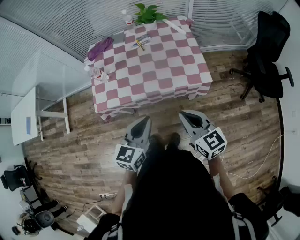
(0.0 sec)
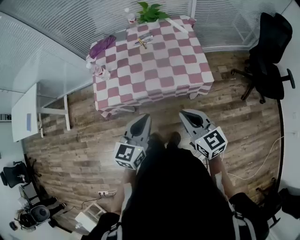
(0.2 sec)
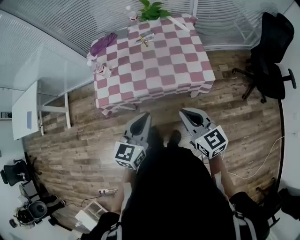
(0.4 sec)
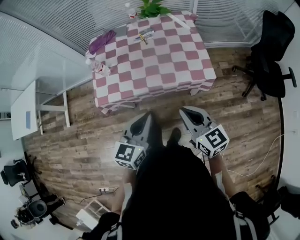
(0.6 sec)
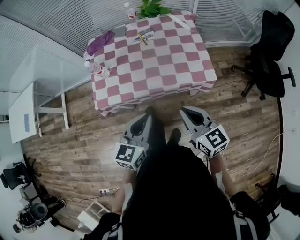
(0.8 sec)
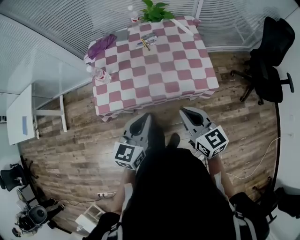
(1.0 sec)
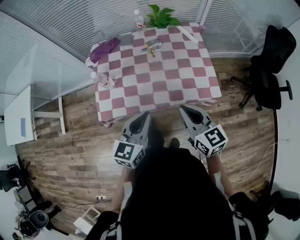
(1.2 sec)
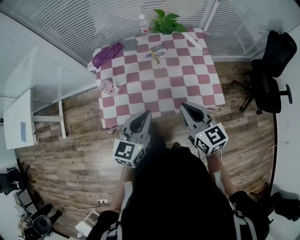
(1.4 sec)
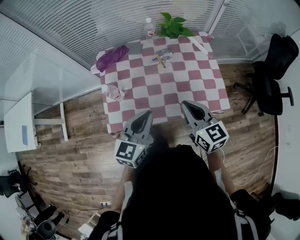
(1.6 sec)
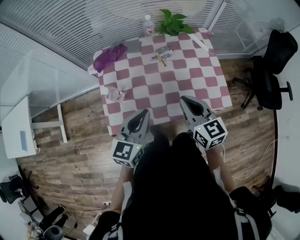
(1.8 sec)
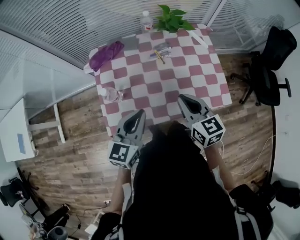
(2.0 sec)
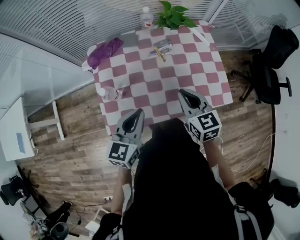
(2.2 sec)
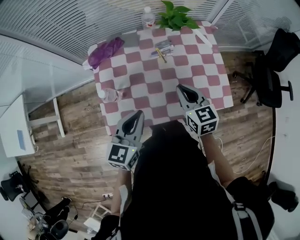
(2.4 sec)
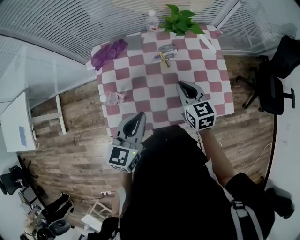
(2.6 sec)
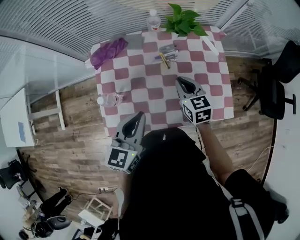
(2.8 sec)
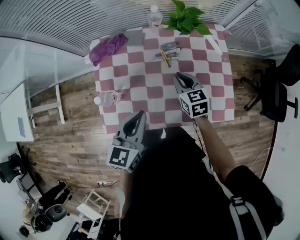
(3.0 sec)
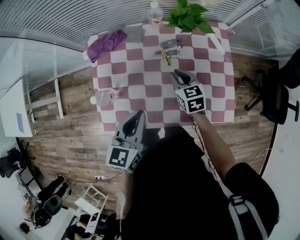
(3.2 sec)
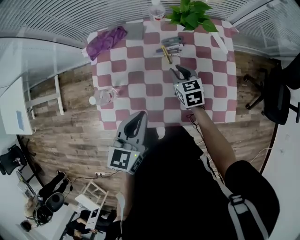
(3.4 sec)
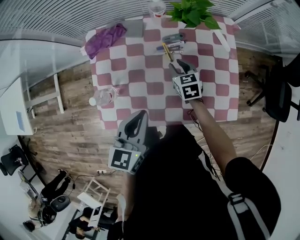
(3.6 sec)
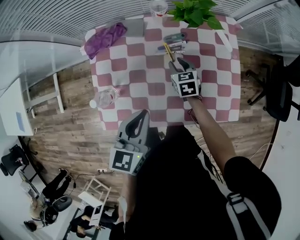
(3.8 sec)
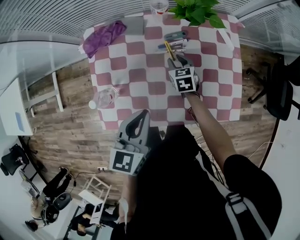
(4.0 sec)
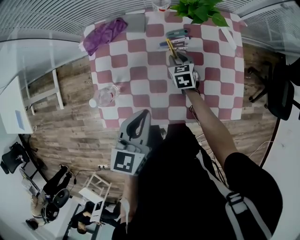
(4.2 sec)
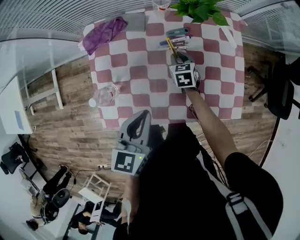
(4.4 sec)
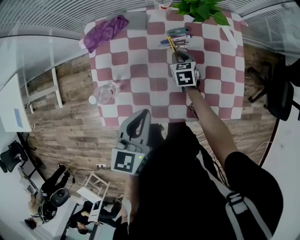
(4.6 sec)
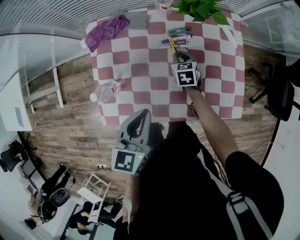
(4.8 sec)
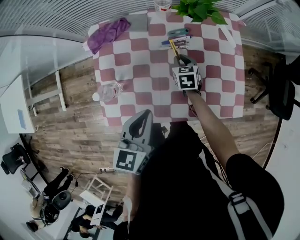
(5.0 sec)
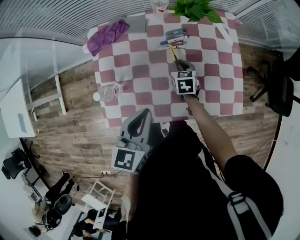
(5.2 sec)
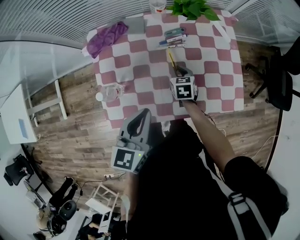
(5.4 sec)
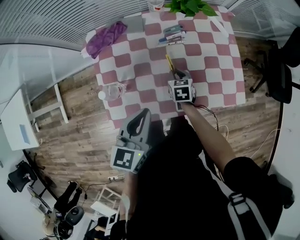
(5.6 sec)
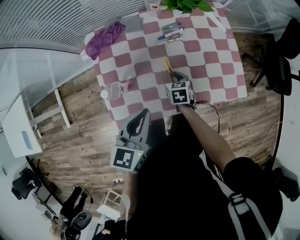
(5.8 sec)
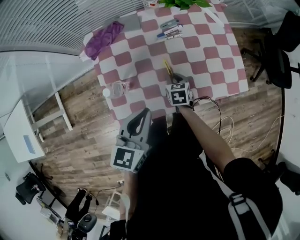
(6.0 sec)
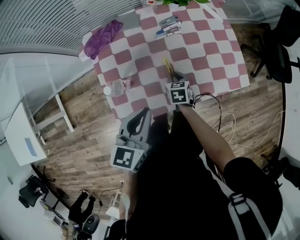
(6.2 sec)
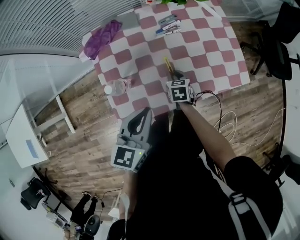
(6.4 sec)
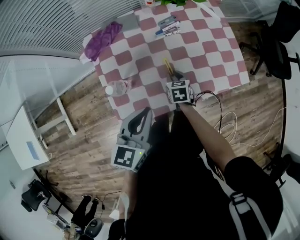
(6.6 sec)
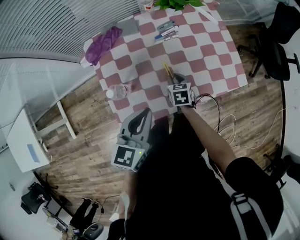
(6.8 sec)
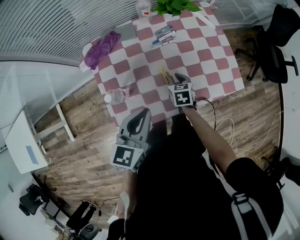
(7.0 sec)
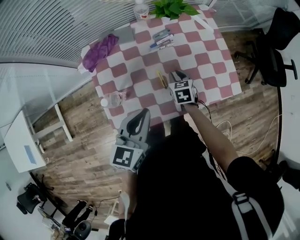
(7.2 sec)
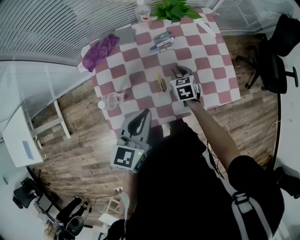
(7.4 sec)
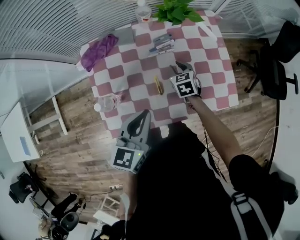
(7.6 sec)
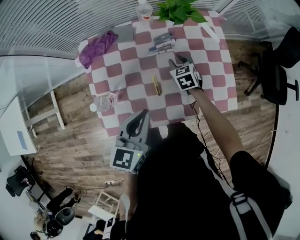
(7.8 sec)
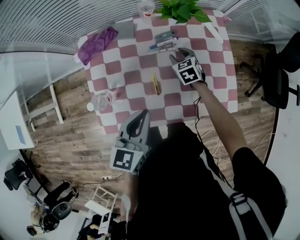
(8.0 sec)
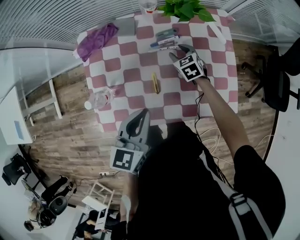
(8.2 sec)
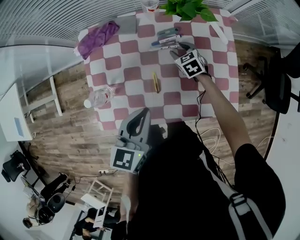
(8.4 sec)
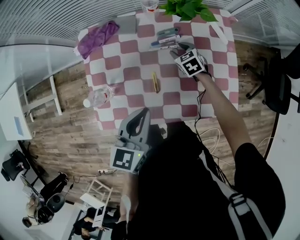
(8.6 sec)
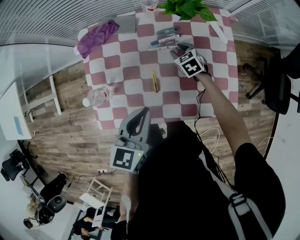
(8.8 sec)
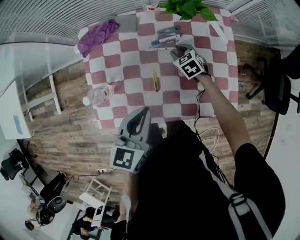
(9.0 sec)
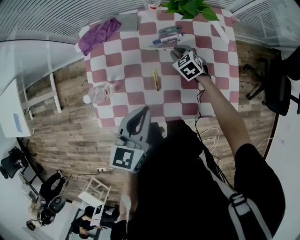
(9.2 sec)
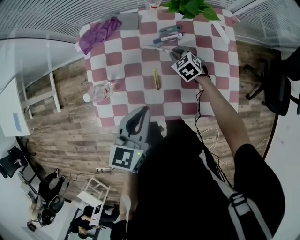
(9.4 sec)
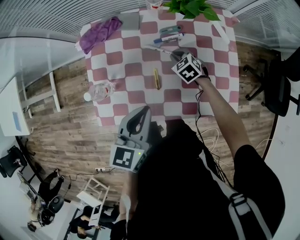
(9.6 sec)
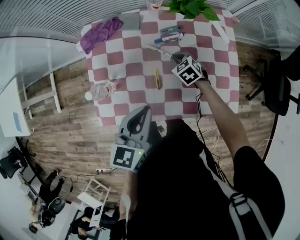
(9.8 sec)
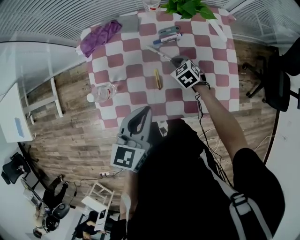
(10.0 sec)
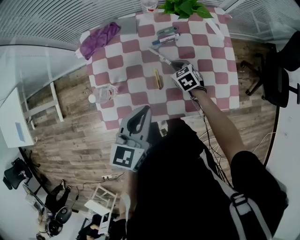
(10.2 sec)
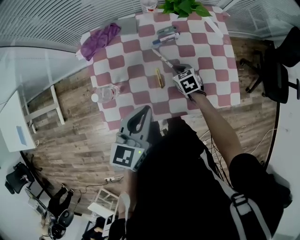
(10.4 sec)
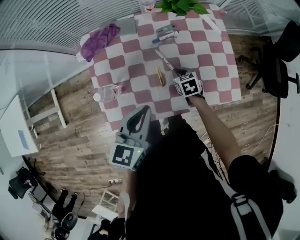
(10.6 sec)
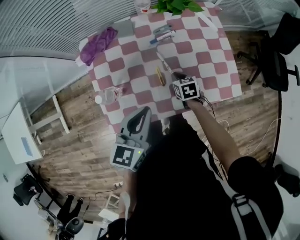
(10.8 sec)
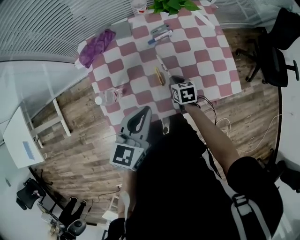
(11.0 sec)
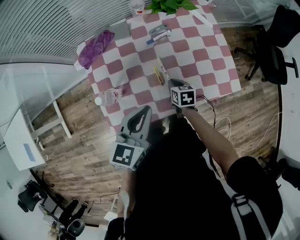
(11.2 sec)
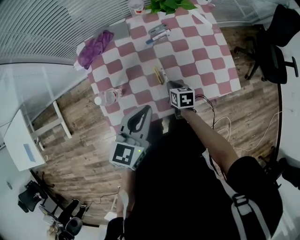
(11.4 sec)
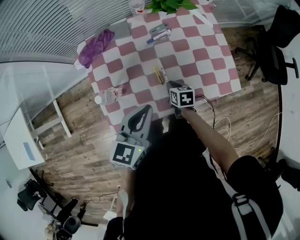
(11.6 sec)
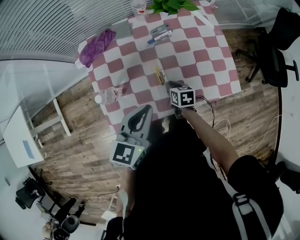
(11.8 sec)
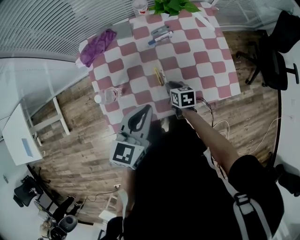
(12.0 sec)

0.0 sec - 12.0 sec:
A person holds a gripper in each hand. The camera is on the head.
0.0 sec - 1.6 sec: The grippers both shift forward and to the left by about 25 cm.
1.6 sec - 3.0 sec: The left gripper is displaced forward by roughly 10 cm; the right gripper heads forward and downward, covering roughly 25 cm.
3.0 sec - 4.4 sec: The right gripper moves downward and forward, approximately 15 cm.
4.4 sec - 6.0 sec: The left gripper heads backward and to the left, covering approximately 10 cm. The right gripper is displaced backward by roughly 15 cm.
6.0 sec - 7.6 sec: The left gripper goes about 5 cm forward; the right gripper heads forward, covering approximately 15 cm.
7.6 sec - 9.0 sec: The right gripper moves forward, roughly 5 cm, turns by some 20 degrees, and opens, then closes again.
9.0 sec - 10.4 sec: The right gripper shifts some 10 cm backward, and closes its fingers.
10.4 sec - 12.0 sec: The right gripper heads backward, covering about 10 cm, and turns by roughly 30 degrees.

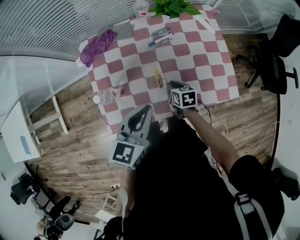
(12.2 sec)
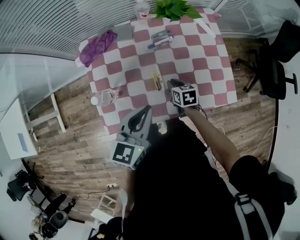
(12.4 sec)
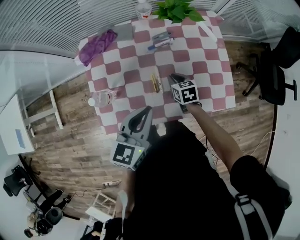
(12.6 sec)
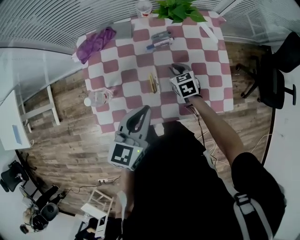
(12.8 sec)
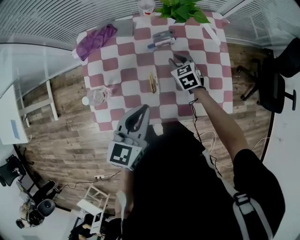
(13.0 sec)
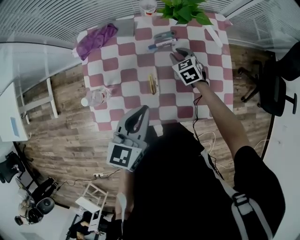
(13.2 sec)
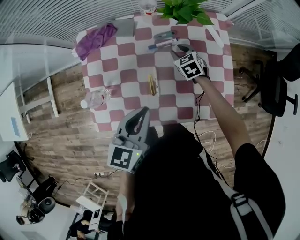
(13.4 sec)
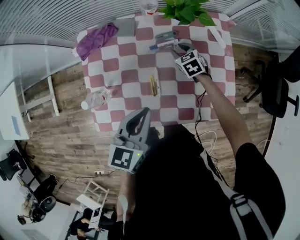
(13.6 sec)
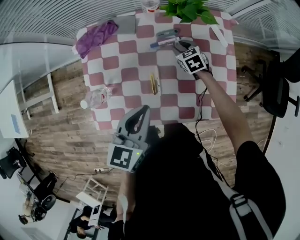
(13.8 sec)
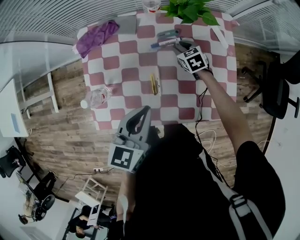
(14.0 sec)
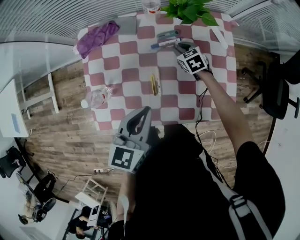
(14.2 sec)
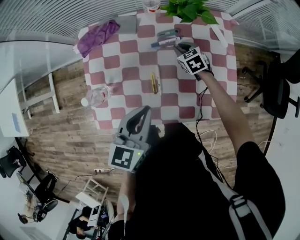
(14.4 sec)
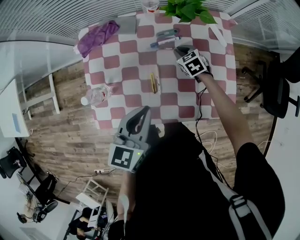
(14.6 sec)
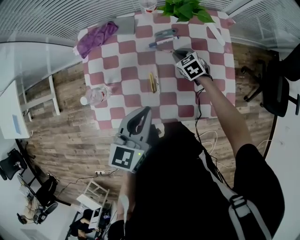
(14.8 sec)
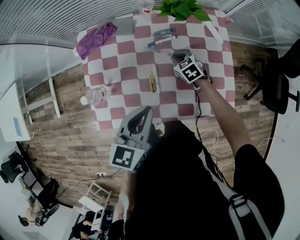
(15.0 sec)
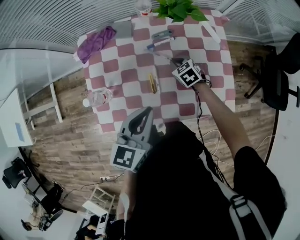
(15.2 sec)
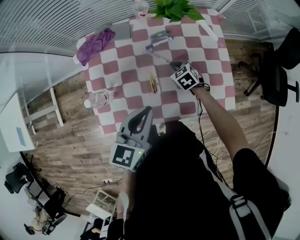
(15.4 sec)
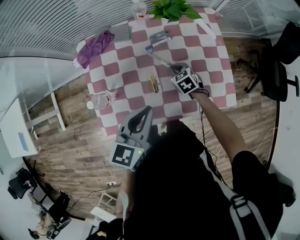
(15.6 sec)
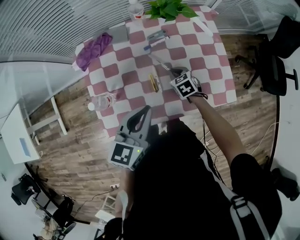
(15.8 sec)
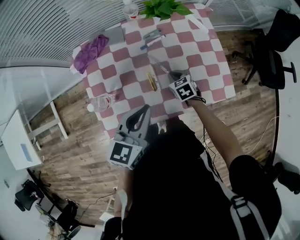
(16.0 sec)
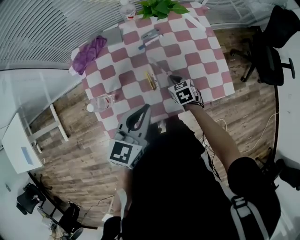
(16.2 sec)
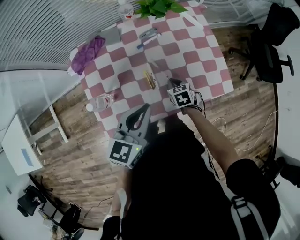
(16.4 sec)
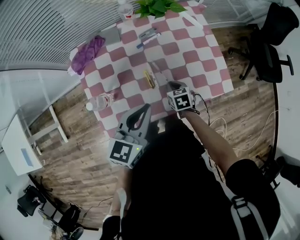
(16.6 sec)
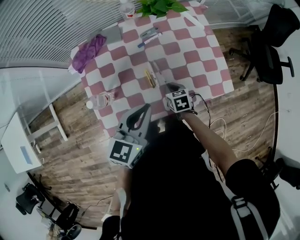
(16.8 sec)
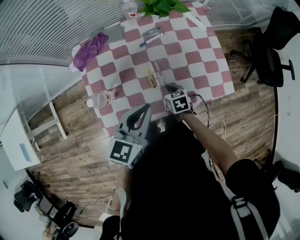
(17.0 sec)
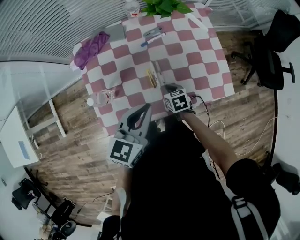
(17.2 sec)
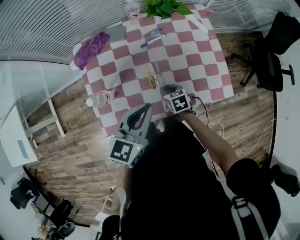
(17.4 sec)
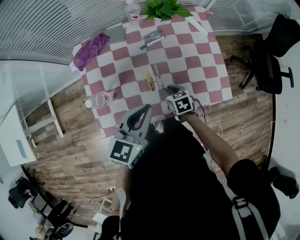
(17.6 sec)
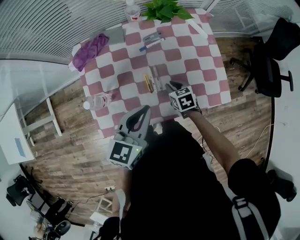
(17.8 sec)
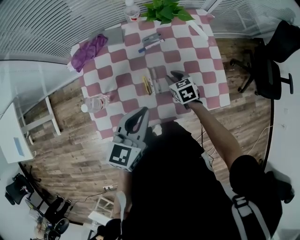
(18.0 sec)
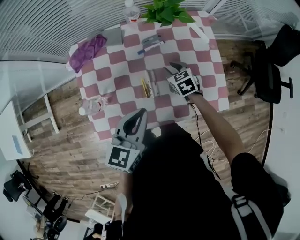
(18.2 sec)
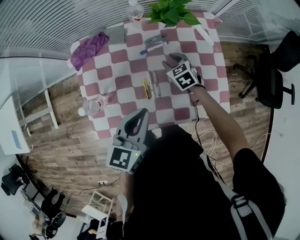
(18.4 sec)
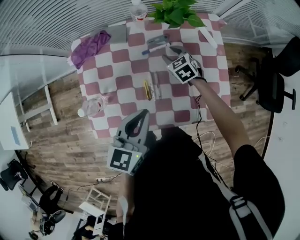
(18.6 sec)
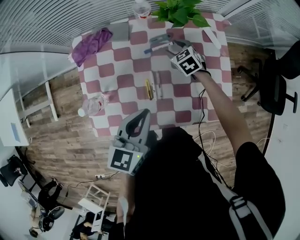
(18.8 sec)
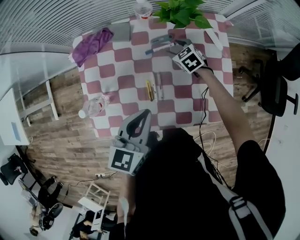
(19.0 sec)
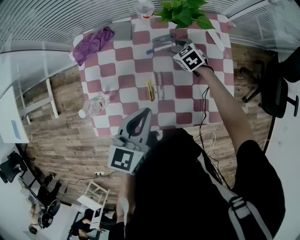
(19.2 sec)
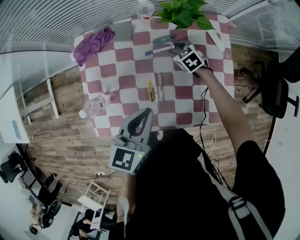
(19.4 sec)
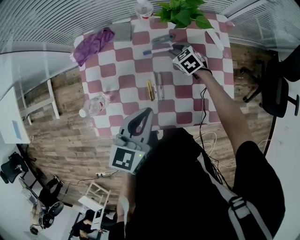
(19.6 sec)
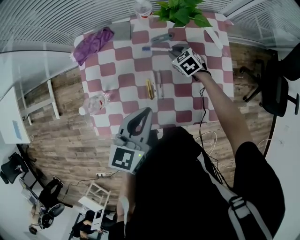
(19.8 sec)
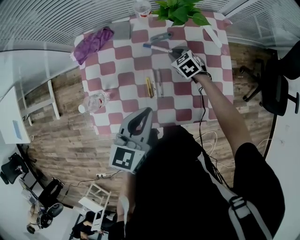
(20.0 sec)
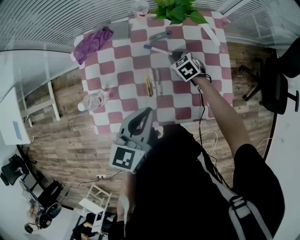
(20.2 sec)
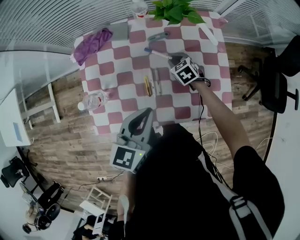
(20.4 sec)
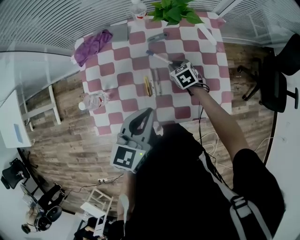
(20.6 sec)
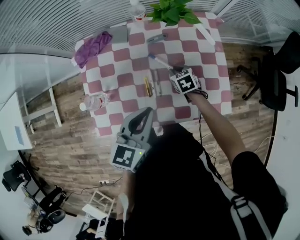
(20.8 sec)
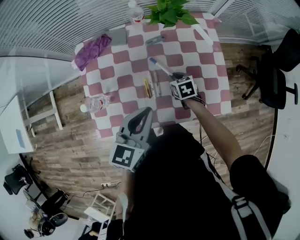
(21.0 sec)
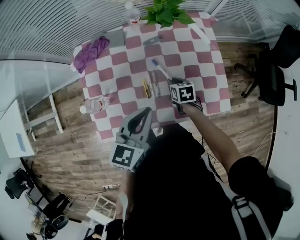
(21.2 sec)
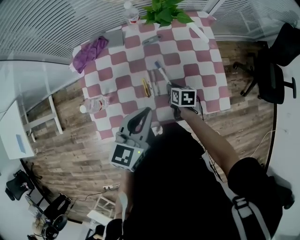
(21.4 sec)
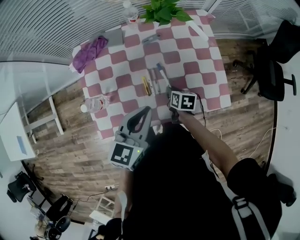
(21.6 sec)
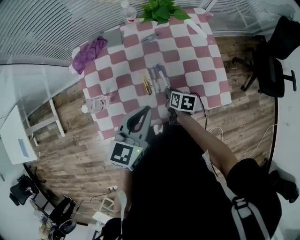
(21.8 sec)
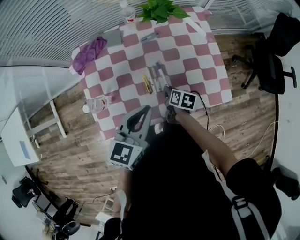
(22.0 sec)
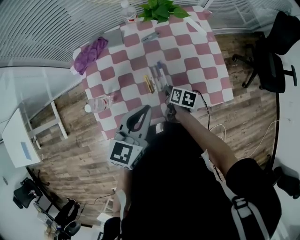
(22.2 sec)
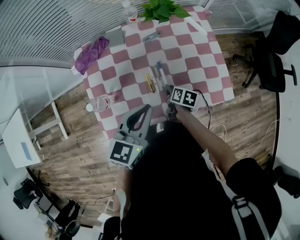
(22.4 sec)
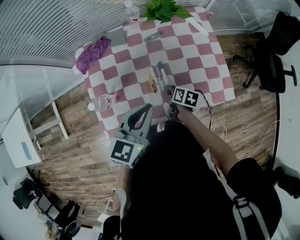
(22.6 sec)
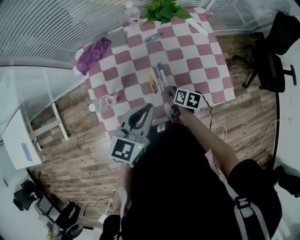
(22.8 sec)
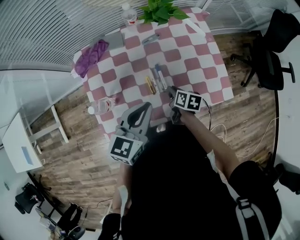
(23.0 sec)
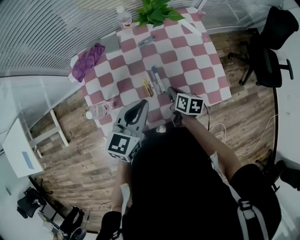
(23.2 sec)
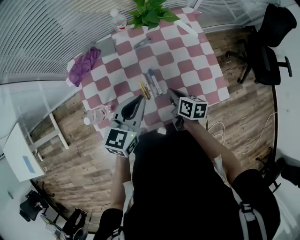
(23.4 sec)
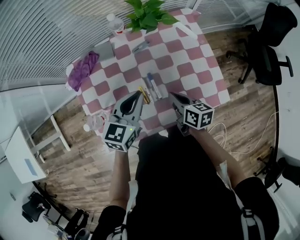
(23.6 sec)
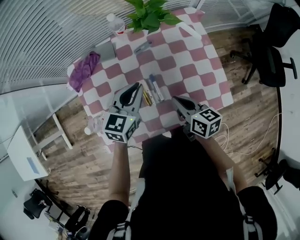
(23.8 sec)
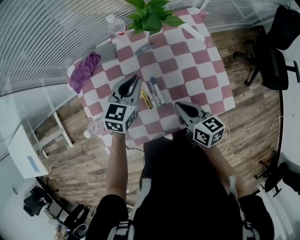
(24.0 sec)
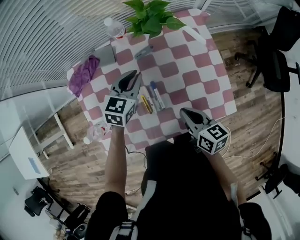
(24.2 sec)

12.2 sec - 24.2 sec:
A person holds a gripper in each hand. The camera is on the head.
12.2 sec - 13.8 sec: The right gripper is displaced forward by approximately 20 cm, swivels roughly 40 degrees, and opens its fingers, while the left gripper goes about 5 cm forward.
13.8 sec - 15.2 sec: The right gripper is displaced backward by some 10 cm, and closes.
15.2 sec - 16.6 sec: The right gripper travels backward by approximately 15 cm, and turns by some 30 degrees.
16.6 sec - 18.2 sec: The right gripper travels forward by some 15 cm, changes its angle by some 20 degrees, and opens up.
18.2 sec - 19.8 sec: The right gripper travels forward by about 10 cm, and opens, then closes once more.
19.8 sec - 21.2 sec: The right gripper goes approximately 15 cm backward, and rolls clockwise, seen from behind, by some 40 degrees.
21.2 sec - 22.6 sec: The right gripper goes roughly 5 cm backward, and rotates some 30 degrees.
22.6 sec - 24.2 sec: The left gripper moves forward and downward, roughly 25 cm. Meanwhile the right gripper shifts roughly 15 cm upward, swivels some 30 degrees, and closes up.
